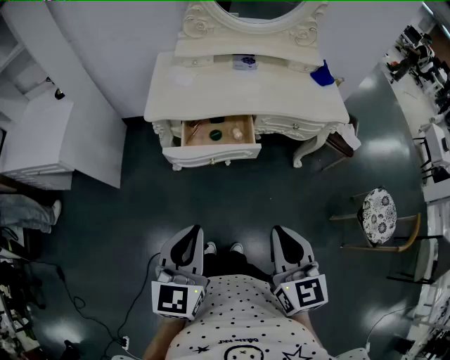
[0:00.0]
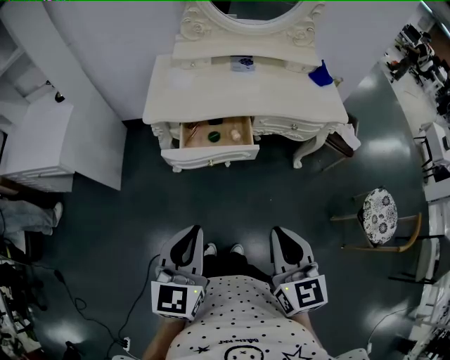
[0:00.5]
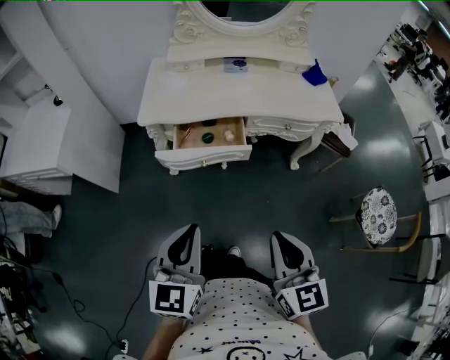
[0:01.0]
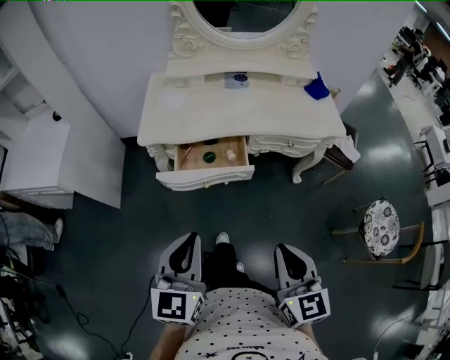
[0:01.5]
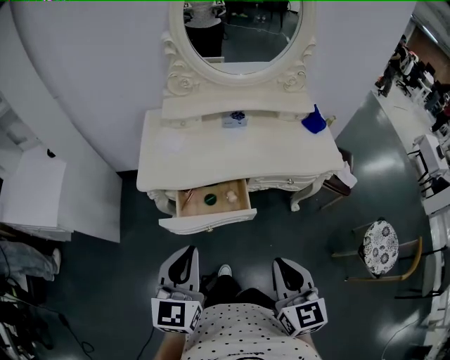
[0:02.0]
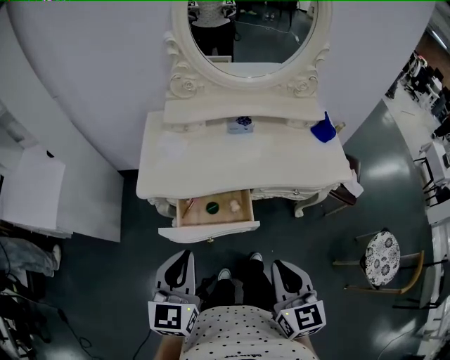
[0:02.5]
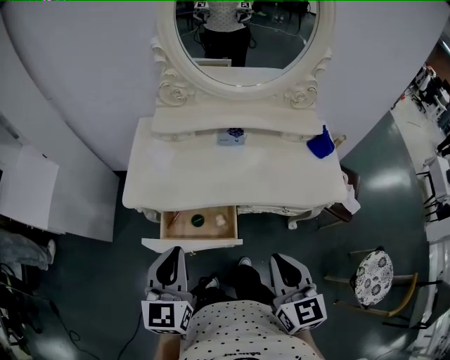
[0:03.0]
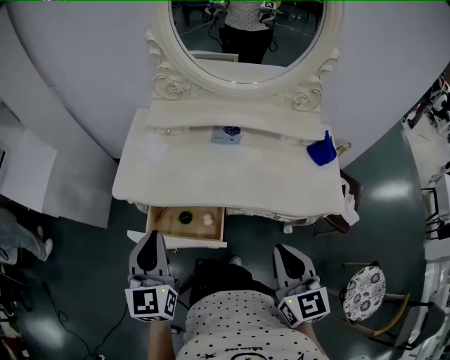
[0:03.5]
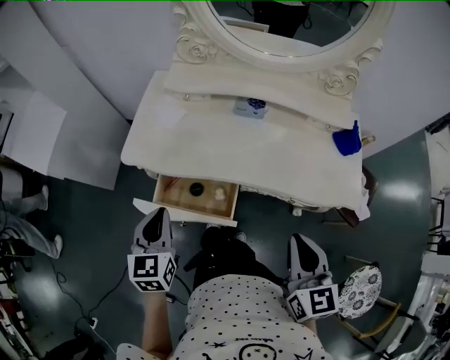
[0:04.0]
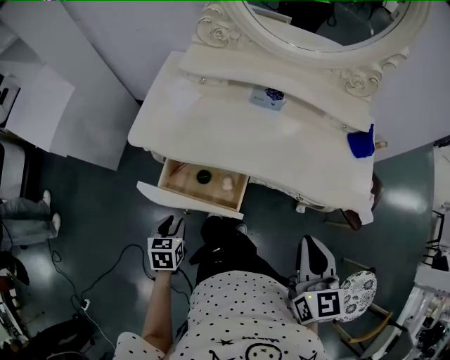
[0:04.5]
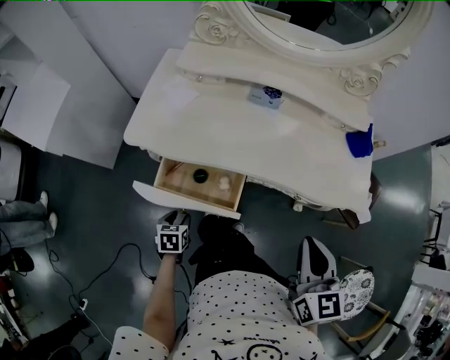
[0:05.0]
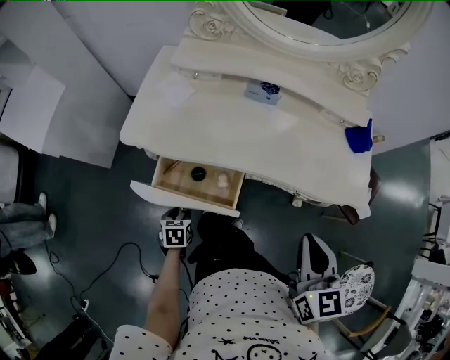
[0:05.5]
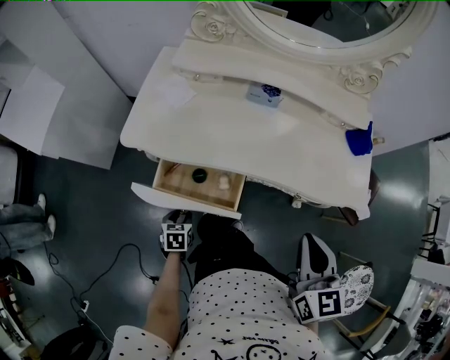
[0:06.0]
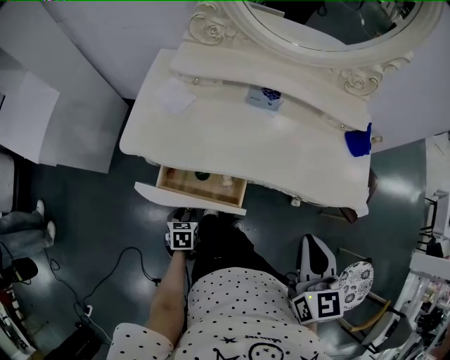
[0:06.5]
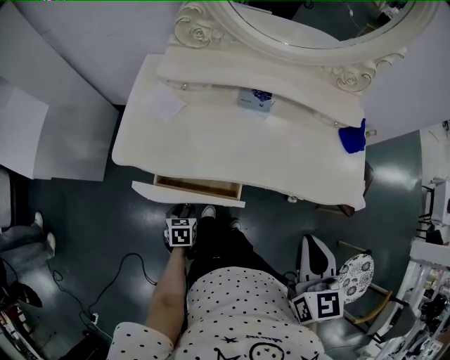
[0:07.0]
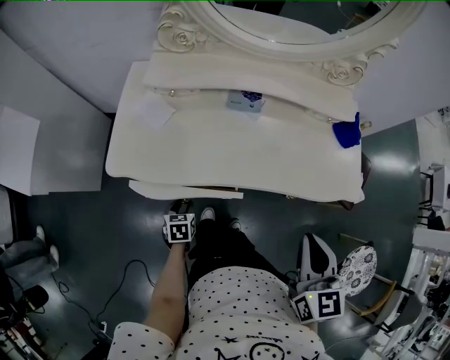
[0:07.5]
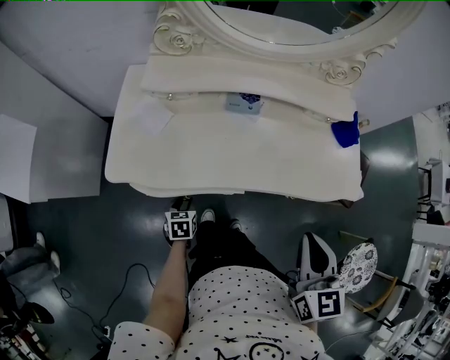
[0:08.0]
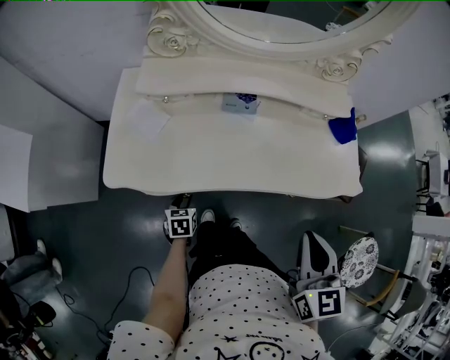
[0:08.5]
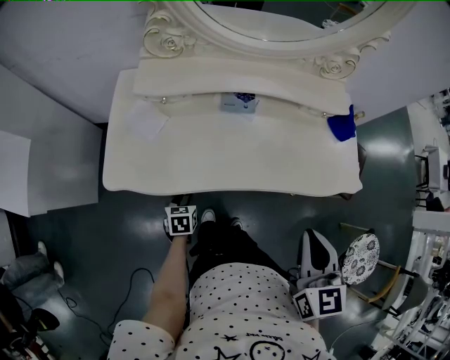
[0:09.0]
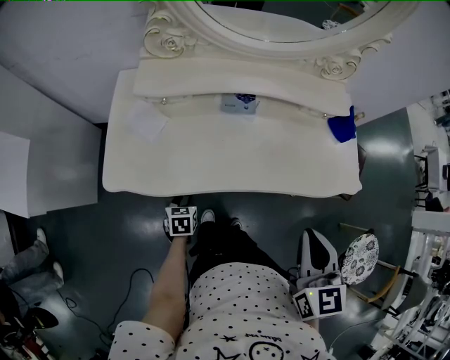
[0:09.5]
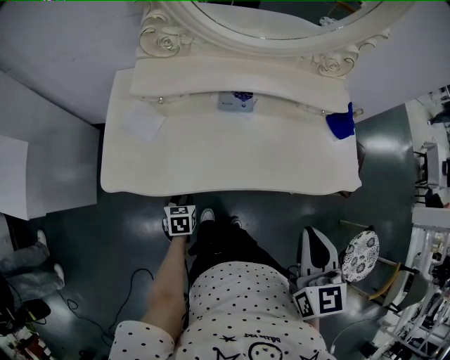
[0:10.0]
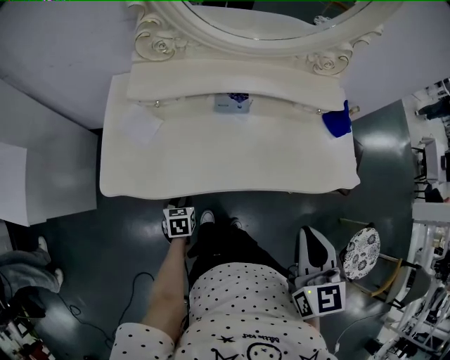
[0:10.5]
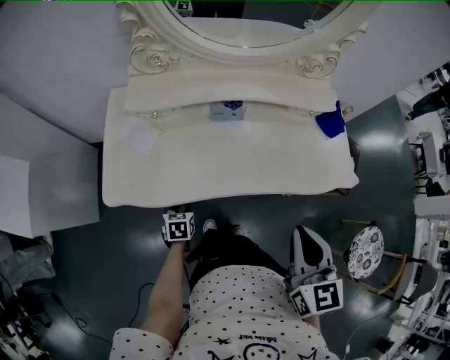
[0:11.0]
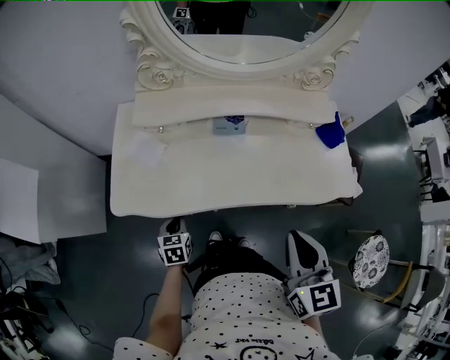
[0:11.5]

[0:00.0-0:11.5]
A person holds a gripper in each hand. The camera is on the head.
0:00.0 to 0:02.0: Both grippers move forward, approximately 15 cm.
0:02.0 to 0:04.0: The left gripper moves forward and downward, some 20 cm, and rotates some 30 degrees. The right gripper travels forward and to the right by some 25 cm.
0:04.0 to 0:06.0: The left gripper is displaced downward by some 30 cm, points its fingers some 30 degrees further downward, and opens.
0:06.0 to 0:07.5: The left gripper is displaced forward by about 10 cm.
0:07.5 to 0:09.5: The left gripper is displaced forward by roughly 5 cm.
0:09.5 to 0:11.5: The left gripper goes roughly 5 cm upward, and closes up.

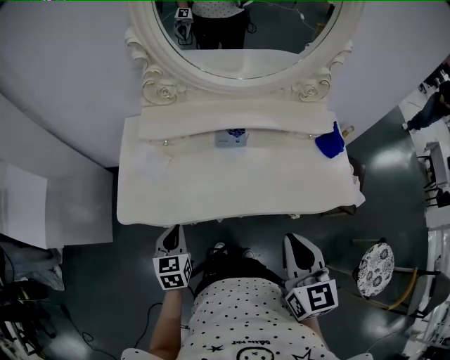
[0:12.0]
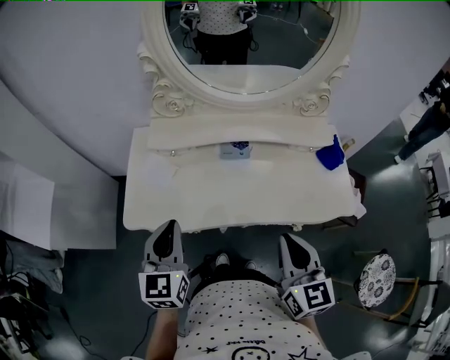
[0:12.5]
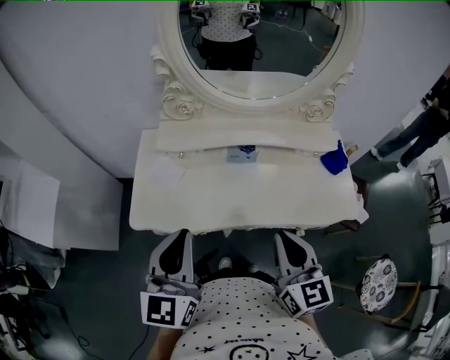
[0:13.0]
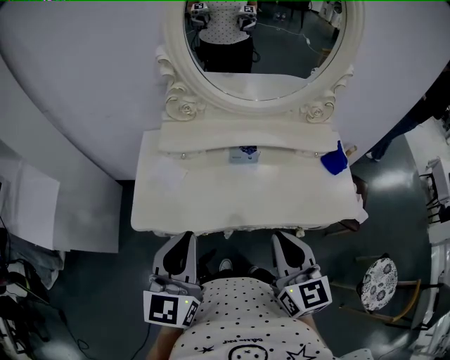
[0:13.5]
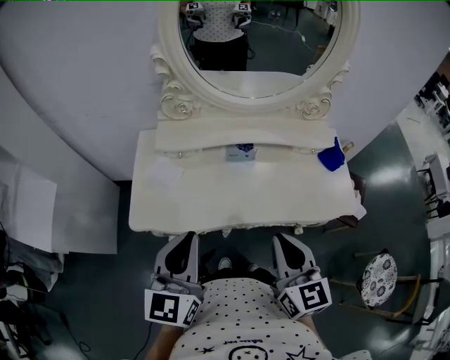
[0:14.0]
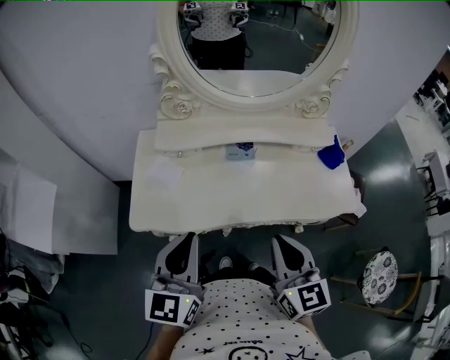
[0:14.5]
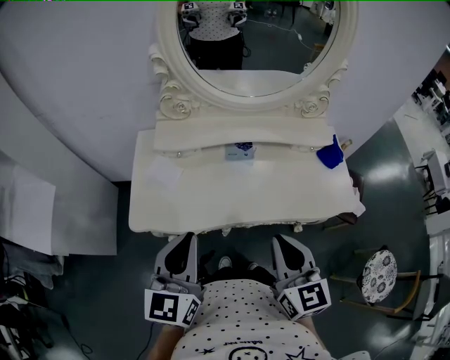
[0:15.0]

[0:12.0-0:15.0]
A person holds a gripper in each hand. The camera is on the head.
0:12.0 to 0:13.5: The left gripper moves upward, roughly 25 cm, and tilts its fingers approximately 30 degrees upward; the right gripper moves to the left, about 5 cm.
0:13.5 to 0:15.0: The grippers move only a little.

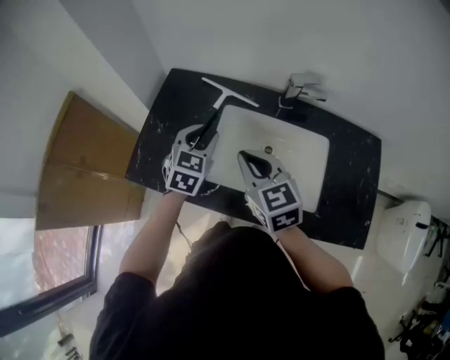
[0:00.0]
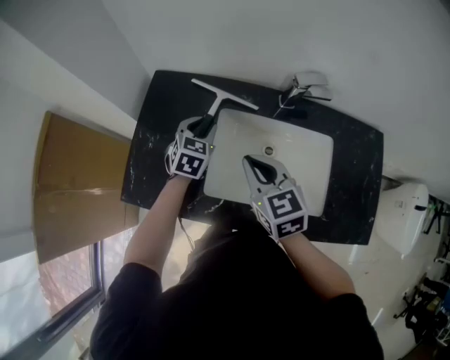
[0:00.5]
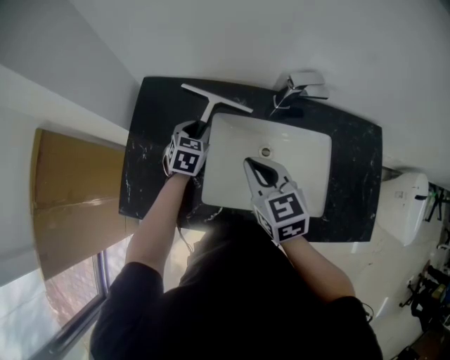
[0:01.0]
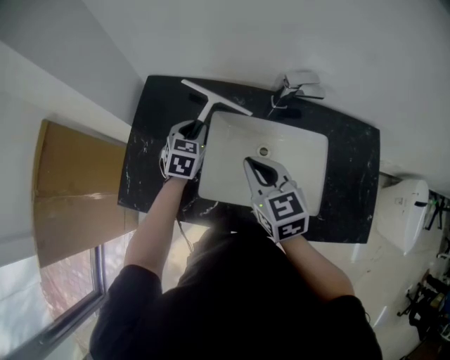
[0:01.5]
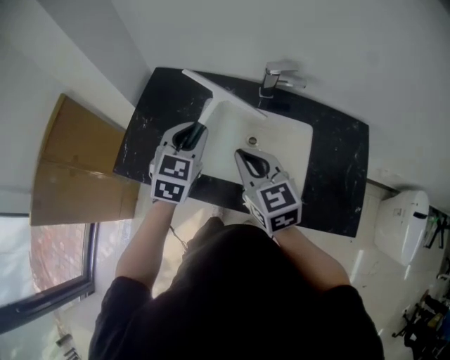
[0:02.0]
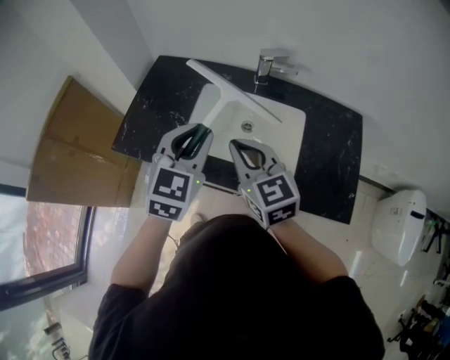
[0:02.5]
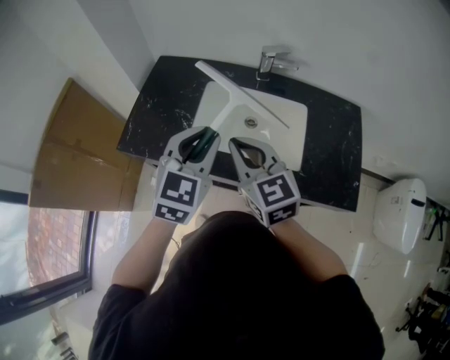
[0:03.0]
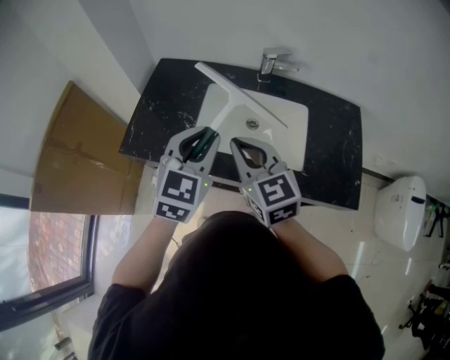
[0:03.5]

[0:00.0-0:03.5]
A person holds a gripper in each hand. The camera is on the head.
0:00.0 to 0:02.0: The right gripper moves to the right, some 5 cm, and moves approximately 5 cm forward and comes back. Meanwhile the left gripper moves roughly 15 cm downward and comes back.
0:02.0 to 0:03.5: The right gripper moves backward, approximately 10 cm, while the left gripper shifts approximately 15 cm backward and upward.

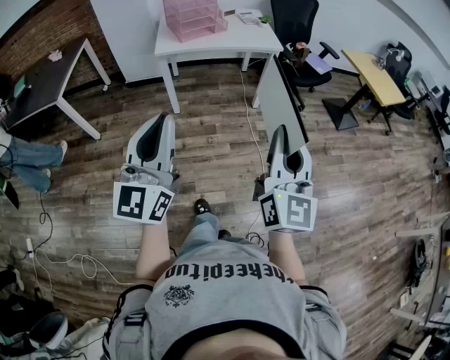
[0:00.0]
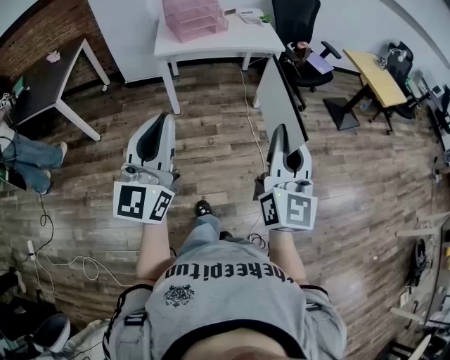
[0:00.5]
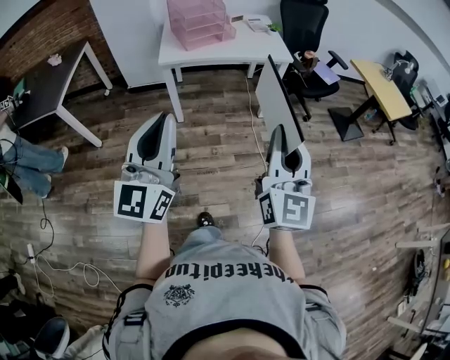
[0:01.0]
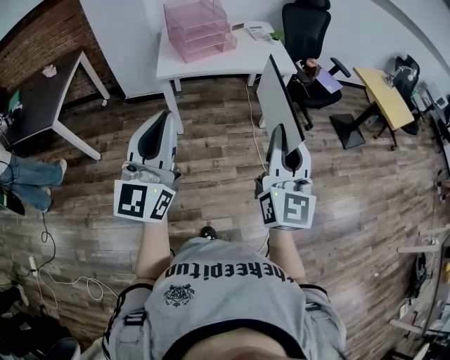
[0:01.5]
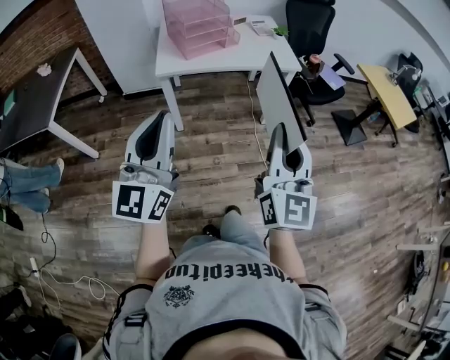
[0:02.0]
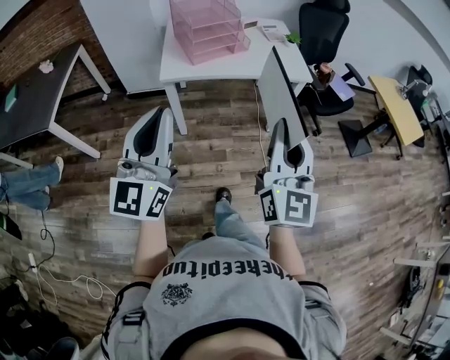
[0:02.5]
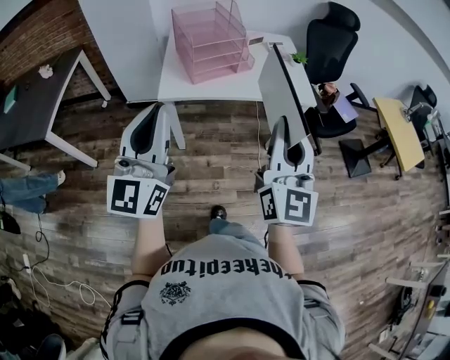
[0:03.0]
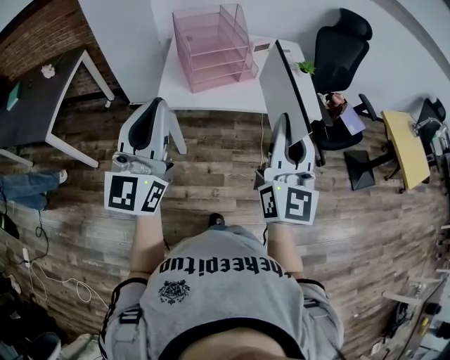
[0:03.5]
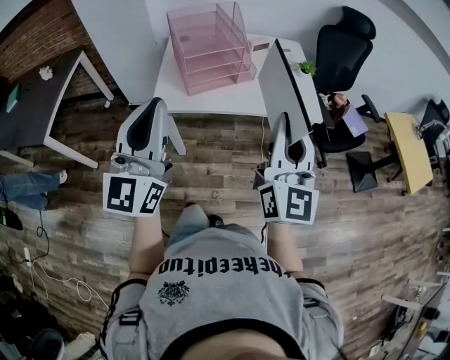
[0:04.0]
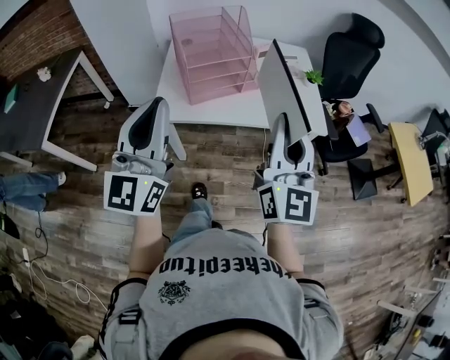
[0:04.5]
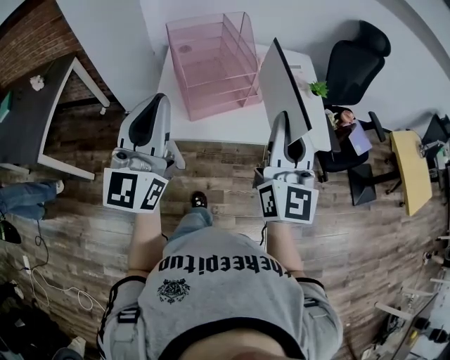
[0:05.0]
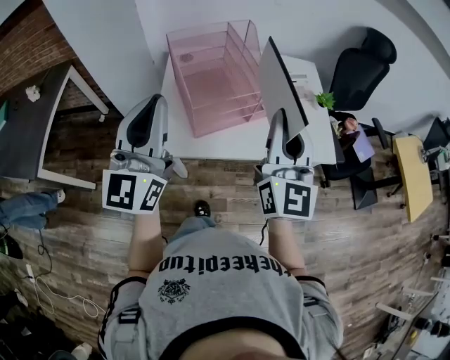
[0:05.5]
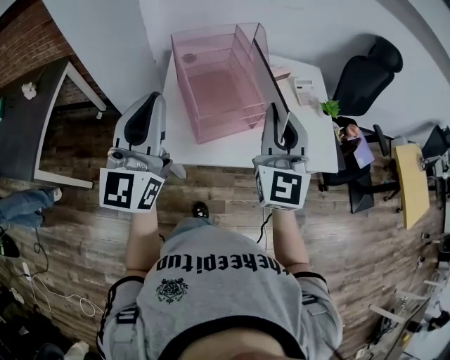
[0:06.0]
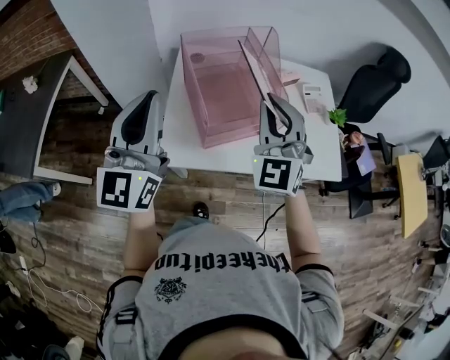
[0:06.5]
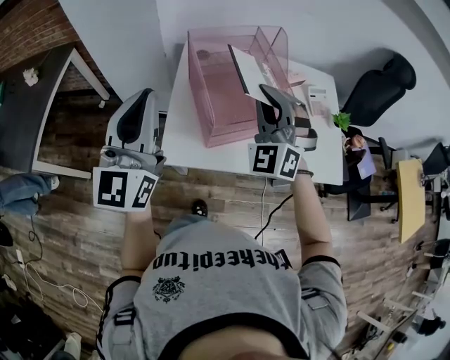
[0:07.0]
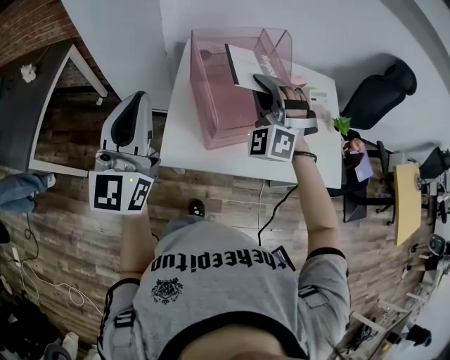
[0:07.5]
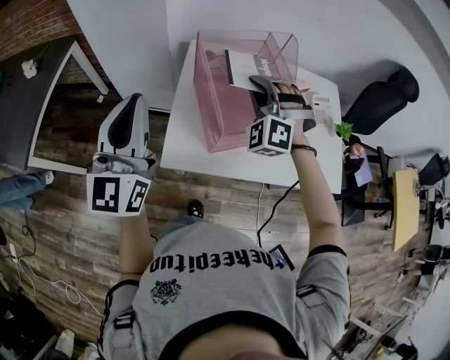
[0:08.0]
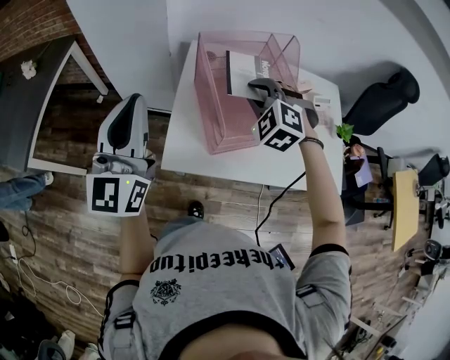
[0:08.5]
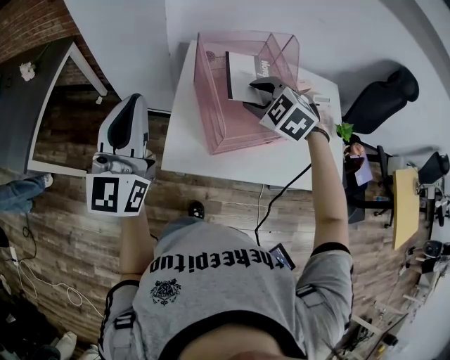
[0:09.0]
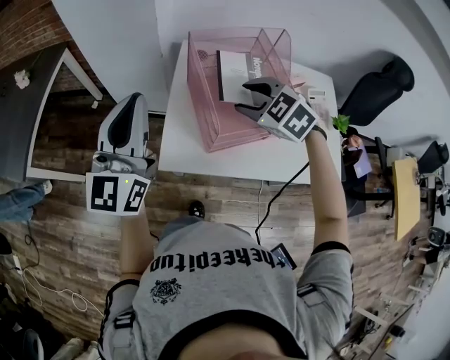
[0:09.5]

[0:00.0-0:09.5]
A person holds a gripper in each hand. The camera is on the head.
0:00.0 to 0:02.0: Both grippers travel together forward and to the left, about 25 cm.
0:02.0 to 0:04.0: The grippers both shift forward by approximately 30 cm.
0:04.0 to 0:05.5: Both grippers travel together forward, roughly 25 cm.
0:05.5 to 0:07.5: The right gripper heads forward, to the left and downward, covering about 30 cm, and rotates around the line of its fingers by about 70 degrees, counterclockwise from behind. The left gripper heads to the left and forward, covering some 15 cm.
0:07.5 to 0:09.5: The right gripper moves downward, some 5 cm, tilts its fingers about 40 degrees downward, and opens.
